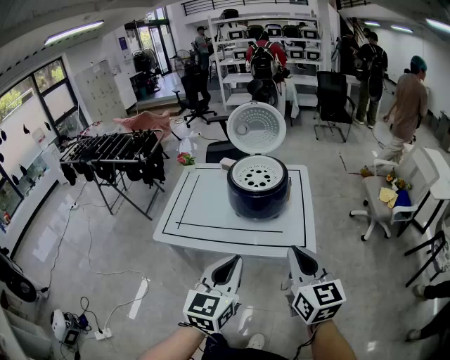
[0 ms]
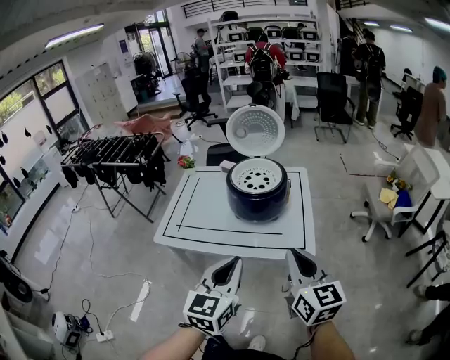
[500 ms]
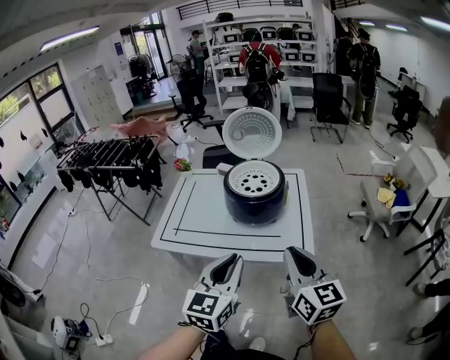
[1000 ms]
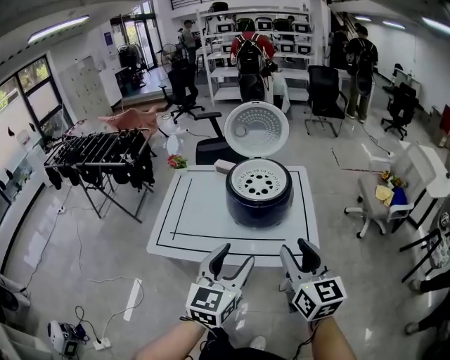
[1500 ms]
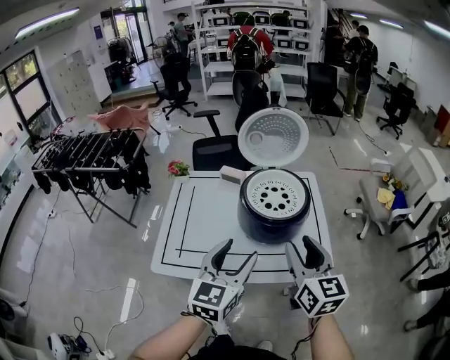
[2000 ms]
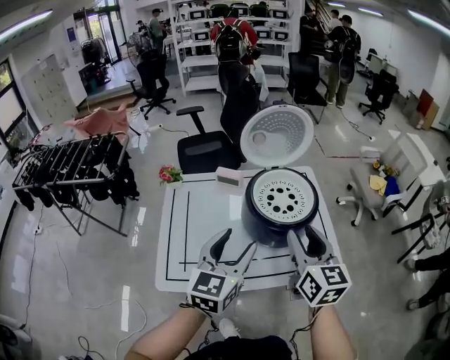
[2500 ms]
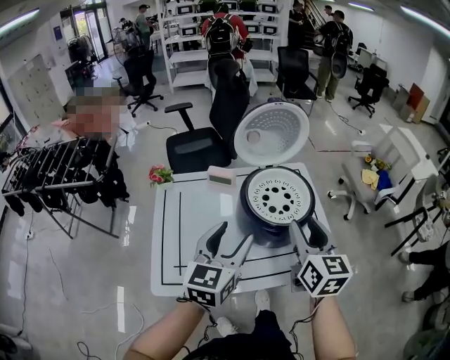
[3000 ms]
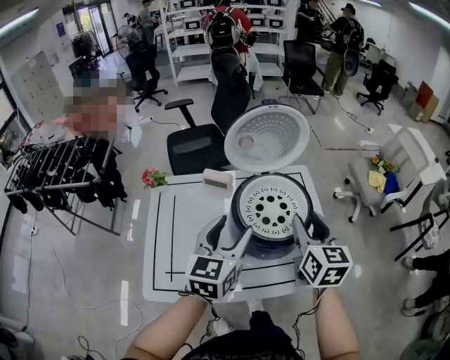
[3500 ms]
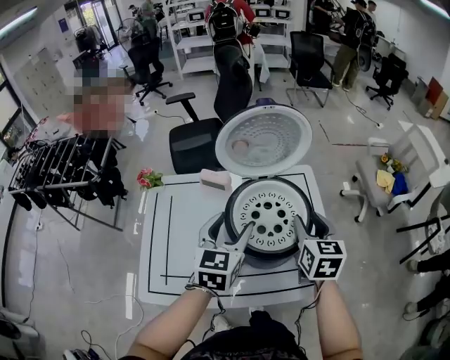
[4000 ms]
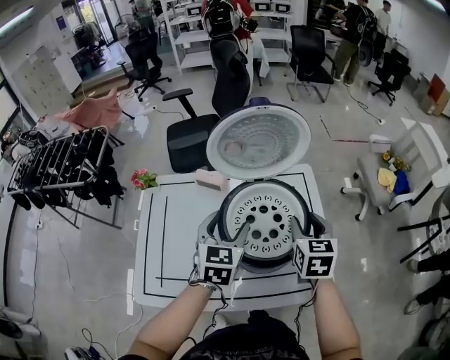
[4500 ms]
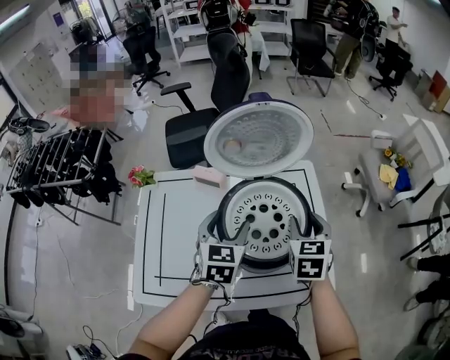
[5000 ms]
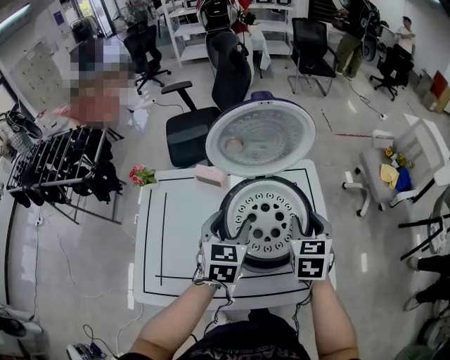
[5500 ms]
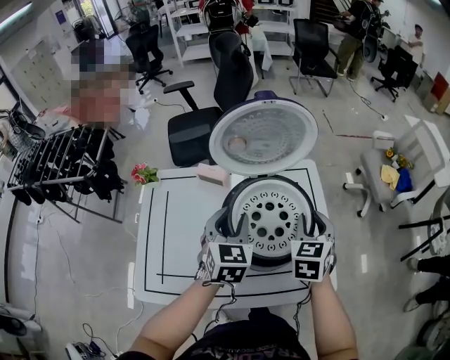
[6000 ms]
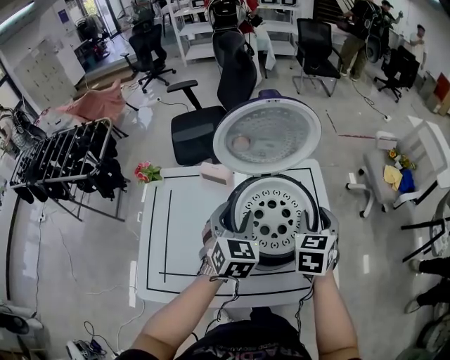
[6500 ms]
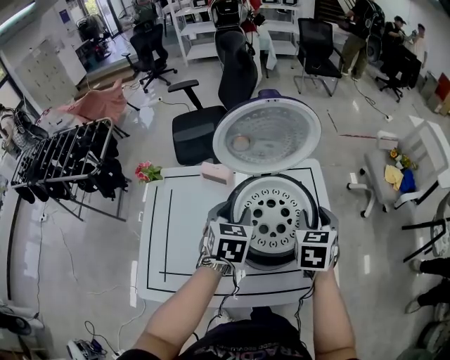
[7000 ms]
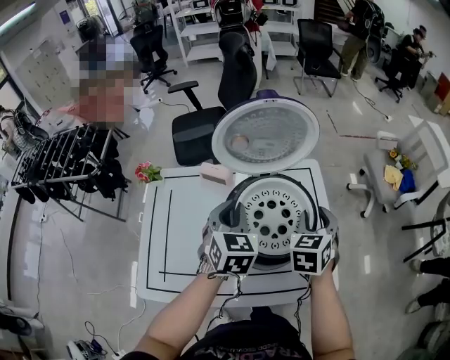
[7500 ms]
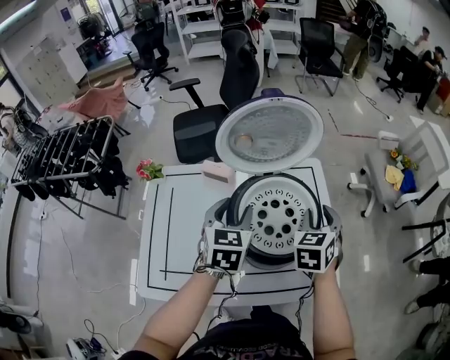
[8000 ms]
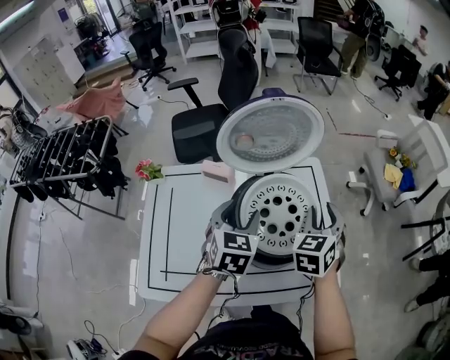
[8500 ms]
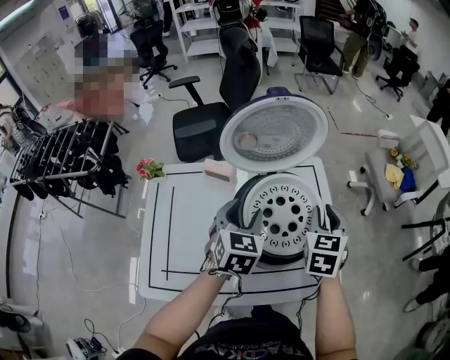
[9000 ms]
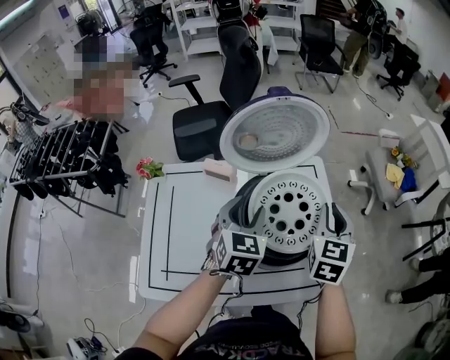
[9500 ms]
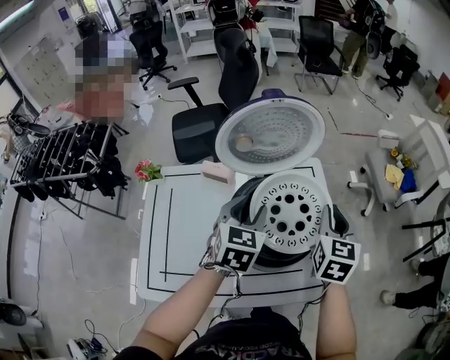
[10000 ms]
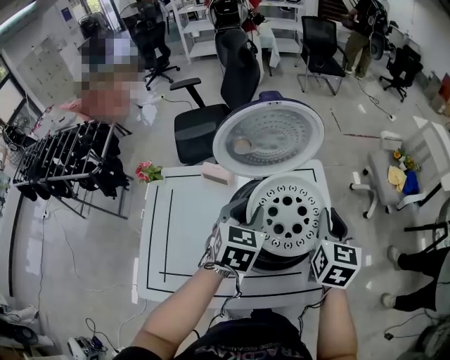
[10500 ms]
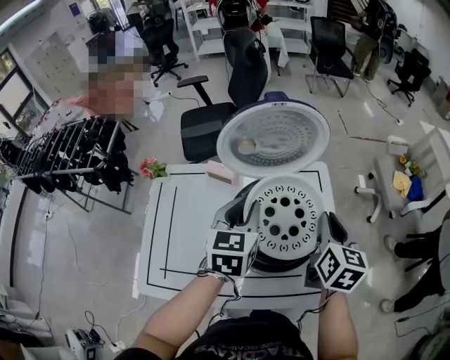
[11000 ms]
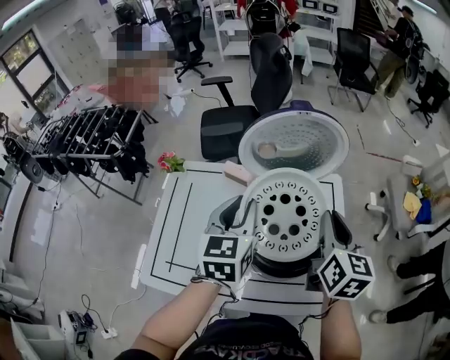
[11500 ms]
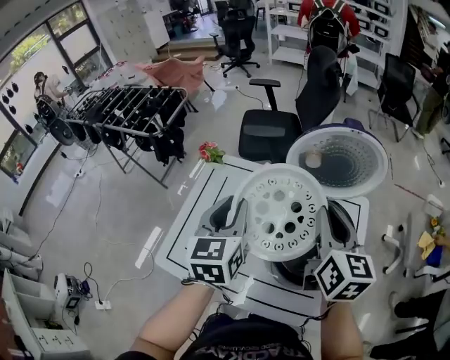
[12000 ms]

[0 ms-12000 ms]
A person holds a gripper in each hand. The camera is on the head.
0 ms to 2000 ms: Both grippers move forward and to the left, some 20 cm. The right gripper opens up. The left gripper opens up.
2000 ms to 4000 ms: Both grippers move forward, about 25 cm. The right gripper rotates approximately 20 degrees.
4000 ms to 6000 ms: The left gripper ends up about 5 cm from where it was, and closes its fingers. Meanwhile the right gripper swivels some 20 degrees.
6000 ms to 8000 ms: The grippers stay close to where they were, moving slightly.
8000 ms to 10000 ms: The right gripper changes its angle by about 20 degrees, and closes up.
10000 ms to 12000 ms: The left gripper changes place by approximately 20 cm, and changes its angle by about 40 degrees. The right gripper moves about 20 cm, and turns by roughly 40 degrees.

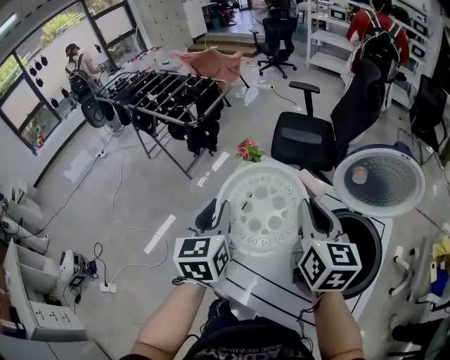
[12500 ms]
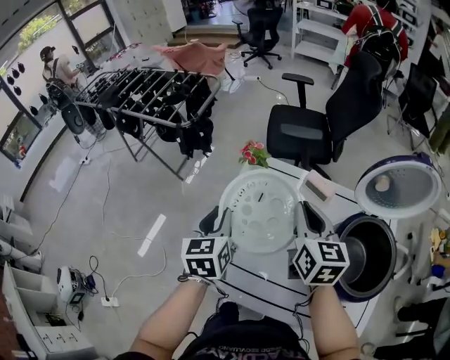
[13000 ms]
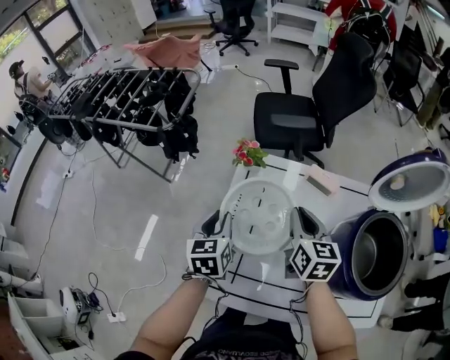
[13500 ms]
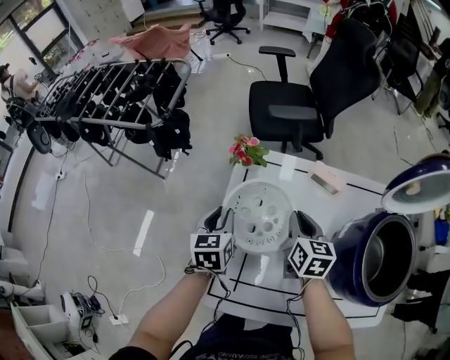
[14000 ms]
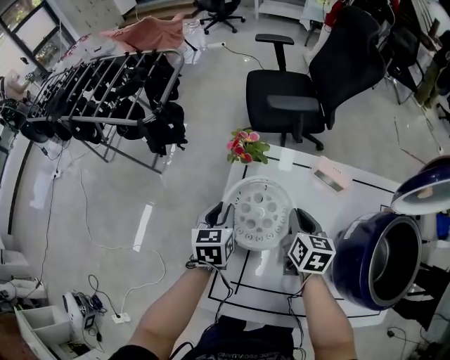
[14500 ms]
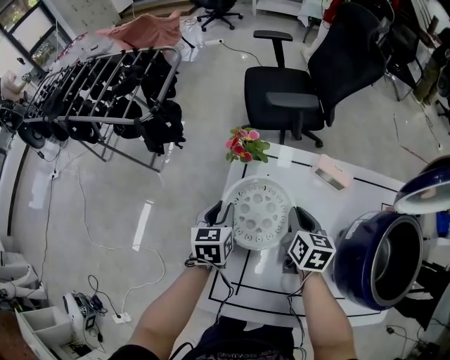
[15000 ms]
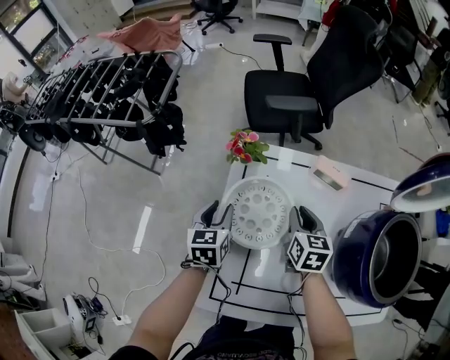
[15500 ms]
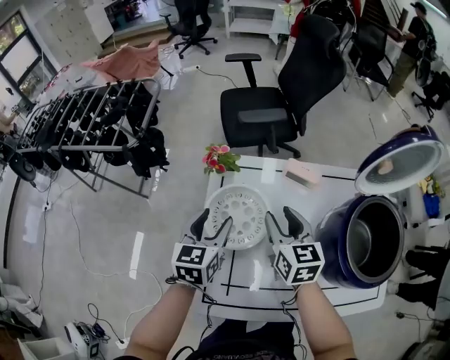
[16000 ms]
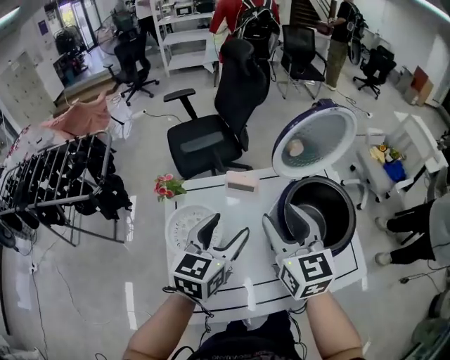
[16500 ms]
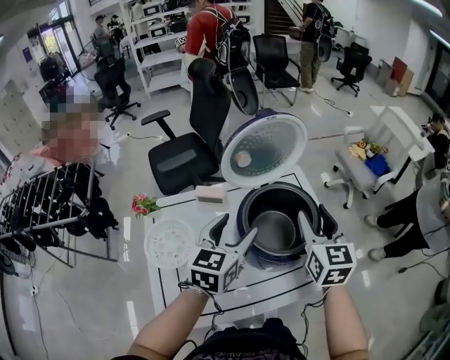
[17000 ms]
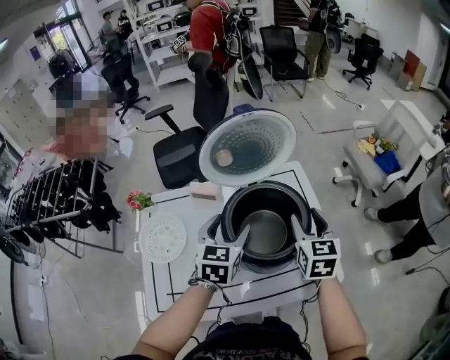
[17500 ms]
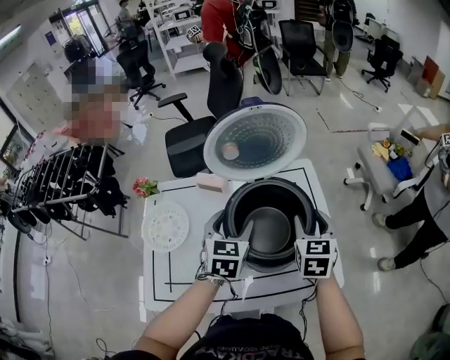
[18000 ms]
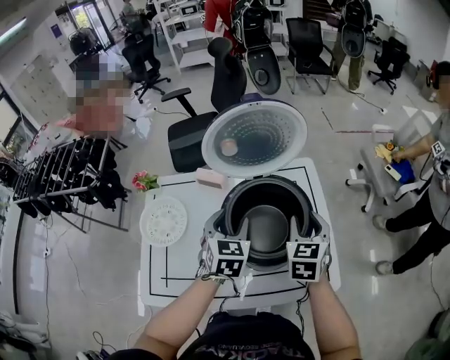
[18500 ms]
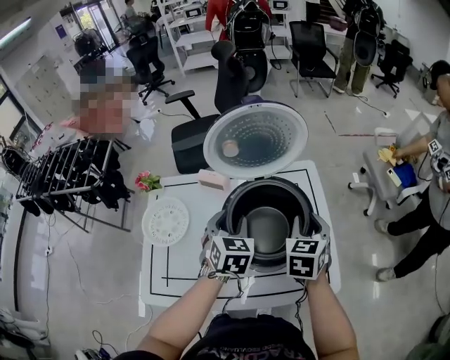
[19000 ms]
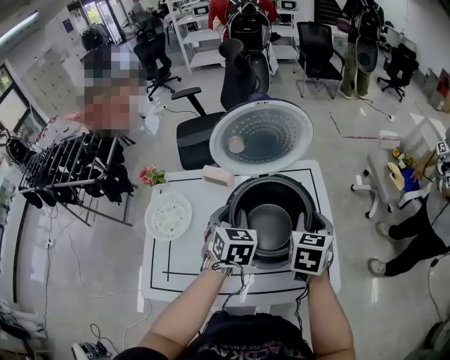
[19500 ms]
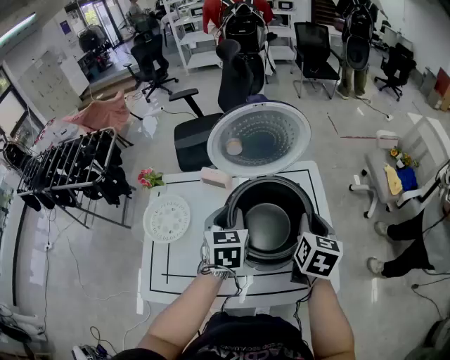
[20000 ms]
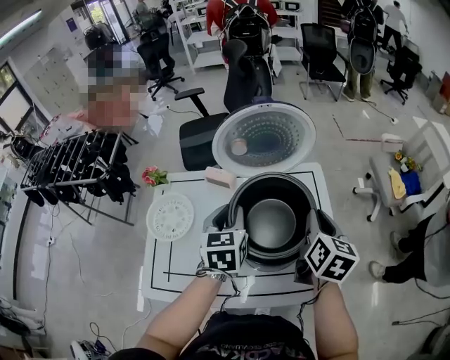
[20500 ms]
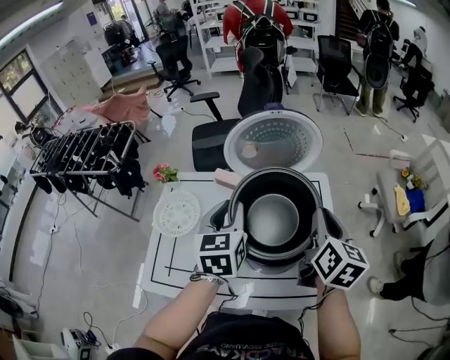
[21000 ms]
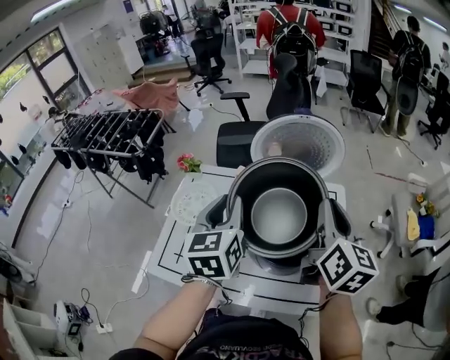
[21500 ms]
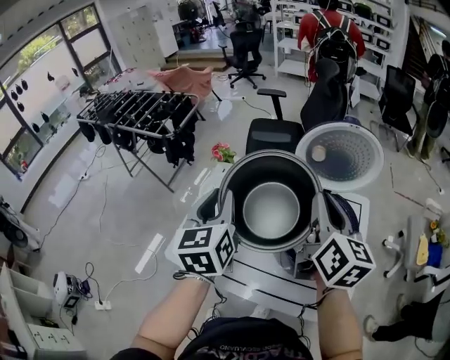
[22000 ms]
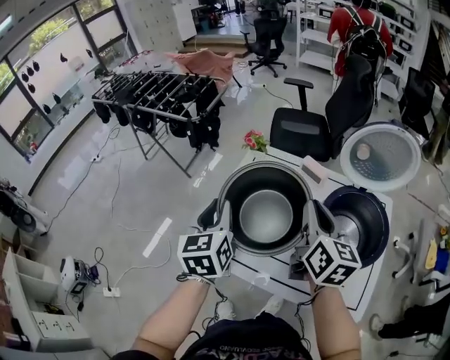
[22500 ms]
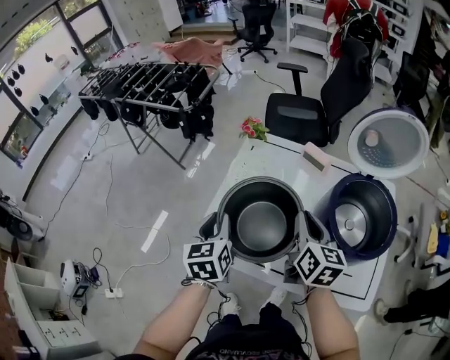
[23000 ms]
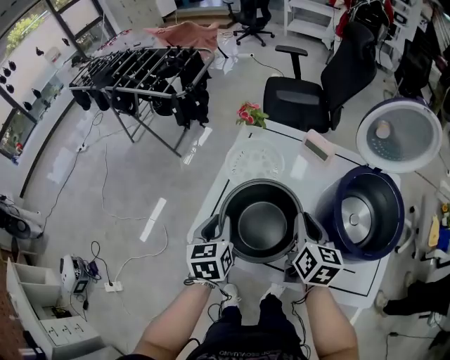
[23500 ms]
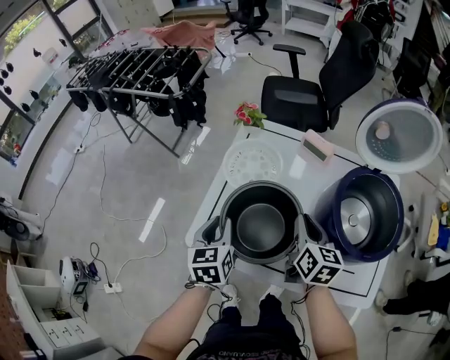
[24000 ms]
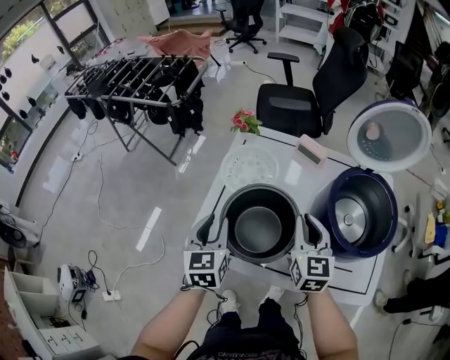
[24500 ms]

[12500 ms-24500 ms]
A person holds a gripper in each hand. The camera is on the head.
12500 ms to 14500 ms: Both grippers travel together downward and forward, some 30 cm. The left gripper turns by some 30 degrees. The right gripper turns by about 30 degrees.
14500 ms to 16500 ms: The right gripper goes roughly 25 cm upward, swivels about 30 degrees, and opens its fingers. Meanwhile the left gripper ends up some 35 cm from where it was, swivels some 40 degrees, and opens its fingers.
16500 ms to 18500 ms: The left gripper heads to the right, covering approximately 20 cm, and changes its angle by some 30 degrees. Meanwhile the right gripper goes approximately 25 cm to the right, and turns by about 30 degrees.
18500 ms to 20500 ms: The right gripper turns by about 30 degrees, and closes, while the left gripper closes its fingers.
20500 ms to 22500 ms: The right gripper shifts by roughly 30 cm, and turns by about 30 degrees. Meanwhile the left gripper ends up approximately 35 cm from where it was, and turns by about 30 degrees.
22500 ms to 24500 ms: The two grippers go some 15 cm downward. The right gripper rotates some 20 degrees.

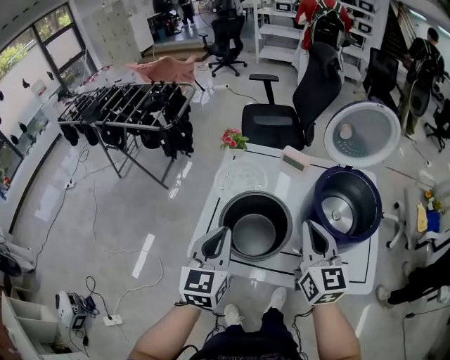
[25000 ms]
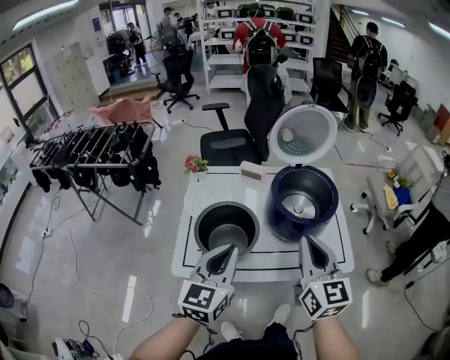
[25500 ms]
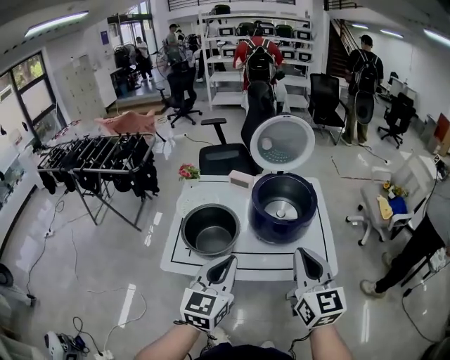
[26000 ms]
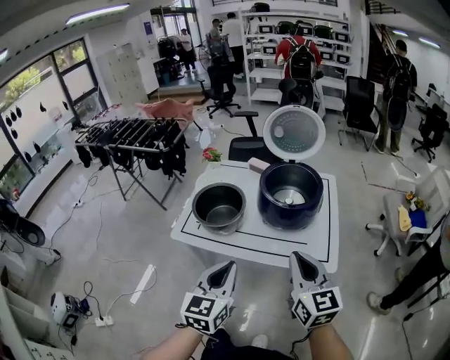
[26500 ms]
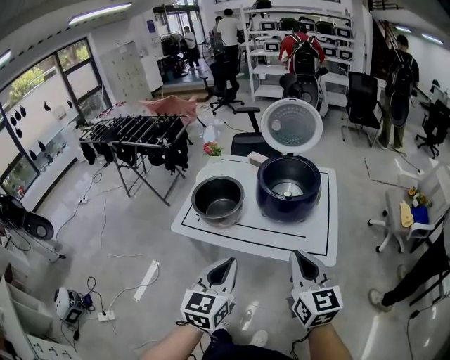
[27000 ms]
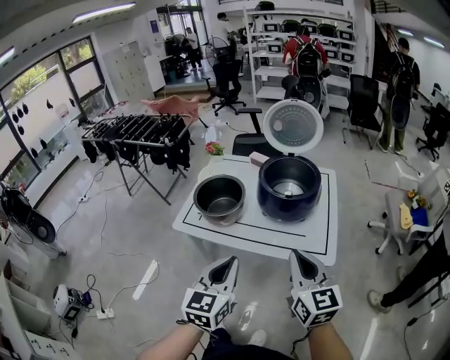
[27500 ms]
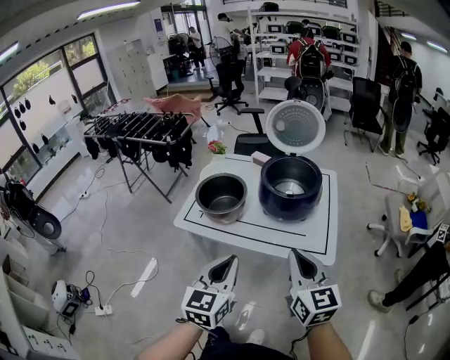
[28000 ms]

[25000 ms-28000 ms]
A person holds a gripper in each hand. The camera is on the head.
25000 ms to 26500 ms: Both grippers travel together backward and to the right, roughly 30 cm.
26500 ms to 28000 ms: The grippers make only small movements.
